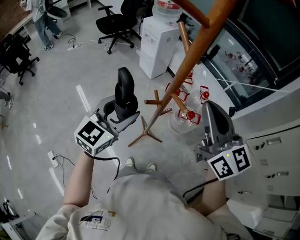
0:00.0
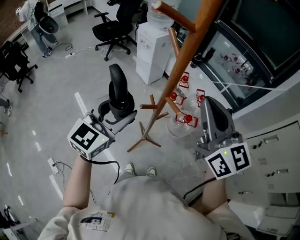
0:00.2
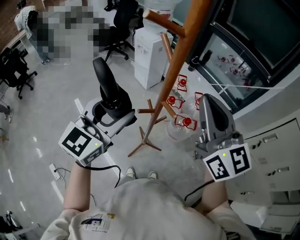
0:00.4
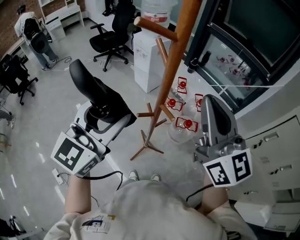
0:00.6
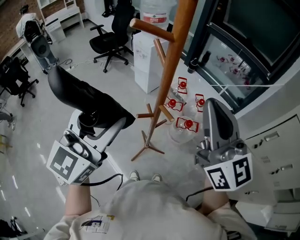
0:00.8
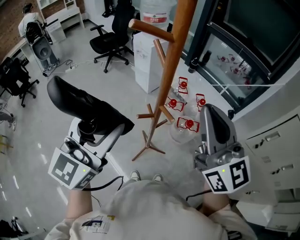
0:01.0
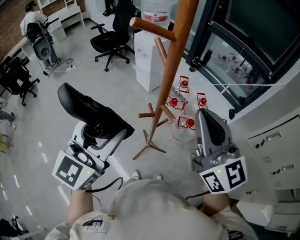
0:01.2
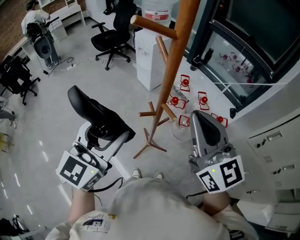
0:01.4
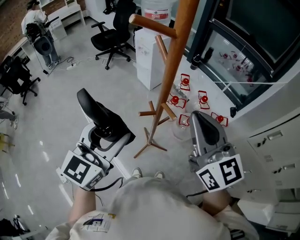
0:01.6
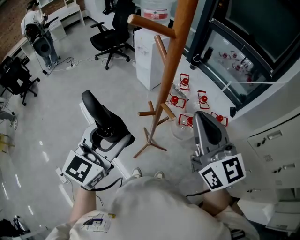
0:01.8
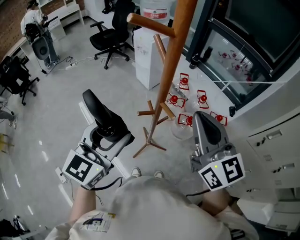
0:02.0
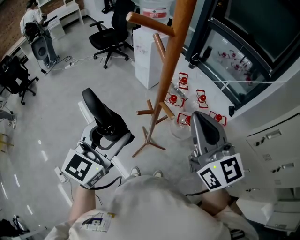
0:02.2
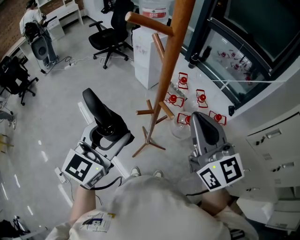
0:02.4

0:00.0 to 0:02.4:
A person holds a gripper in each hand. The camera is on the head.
0:00.0 to 0:01.2: The left gripper heads upward, covering roughly 15 cm.
0:01.2 to 0:02.4: The left gripper shifts approximately 5 cm downward.

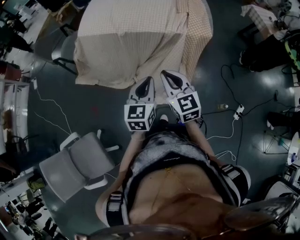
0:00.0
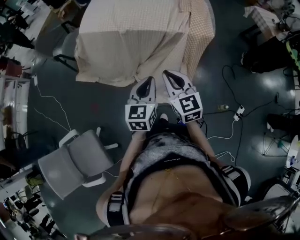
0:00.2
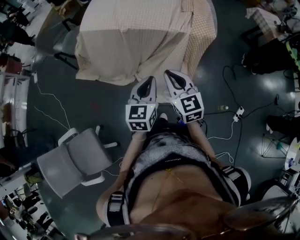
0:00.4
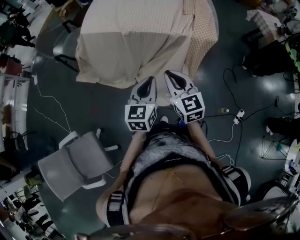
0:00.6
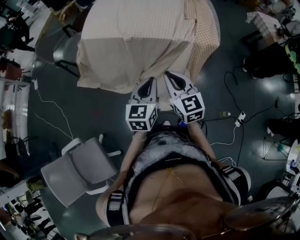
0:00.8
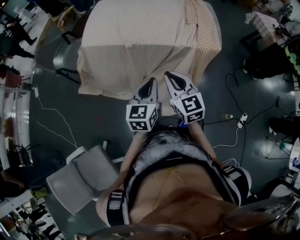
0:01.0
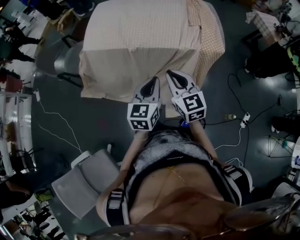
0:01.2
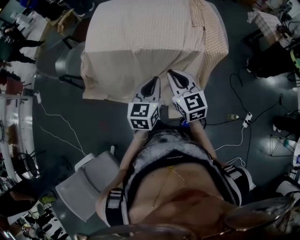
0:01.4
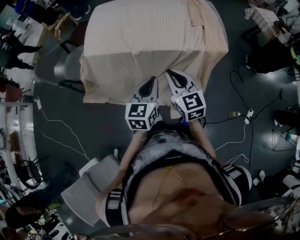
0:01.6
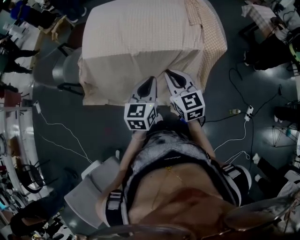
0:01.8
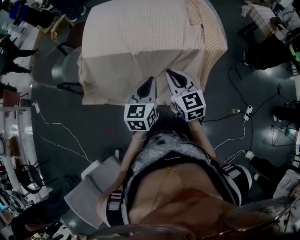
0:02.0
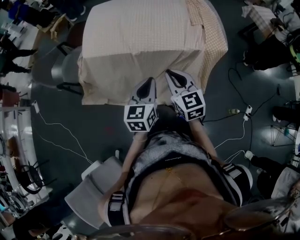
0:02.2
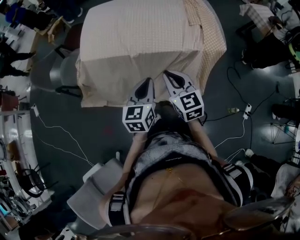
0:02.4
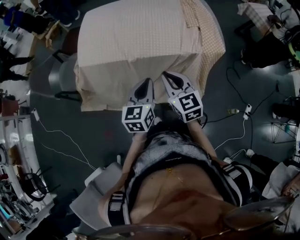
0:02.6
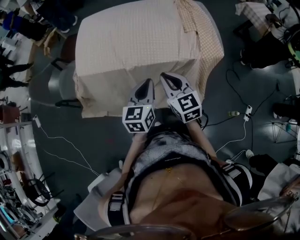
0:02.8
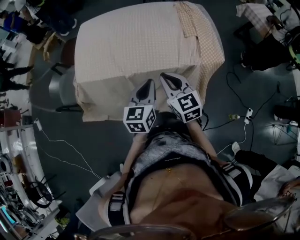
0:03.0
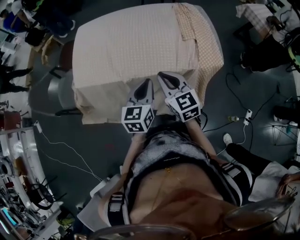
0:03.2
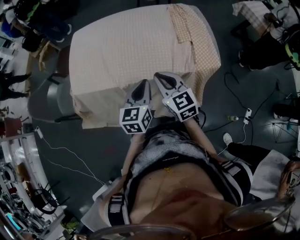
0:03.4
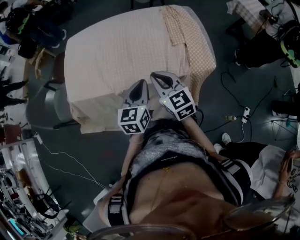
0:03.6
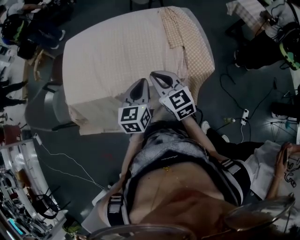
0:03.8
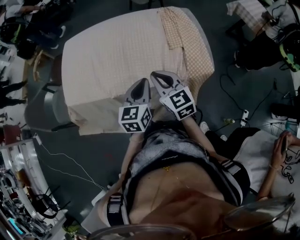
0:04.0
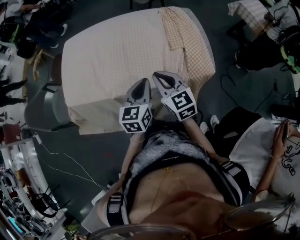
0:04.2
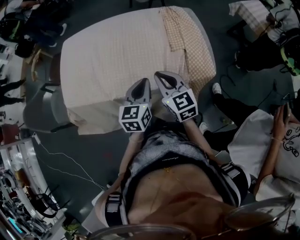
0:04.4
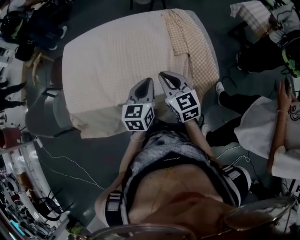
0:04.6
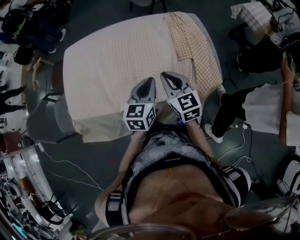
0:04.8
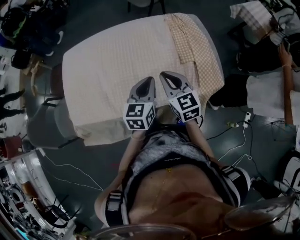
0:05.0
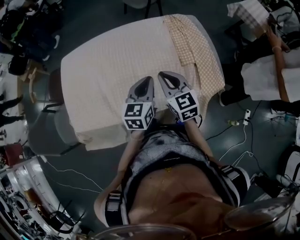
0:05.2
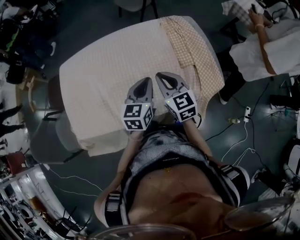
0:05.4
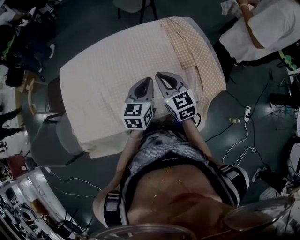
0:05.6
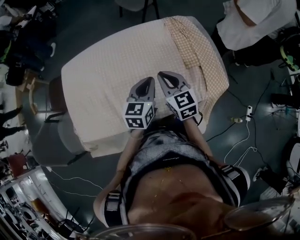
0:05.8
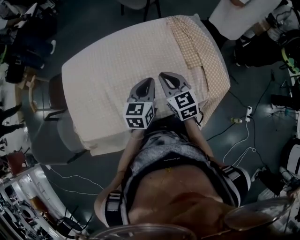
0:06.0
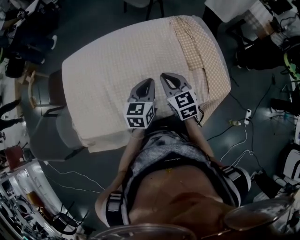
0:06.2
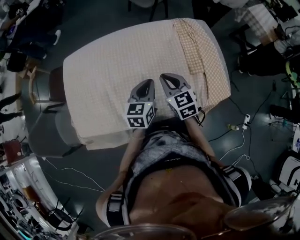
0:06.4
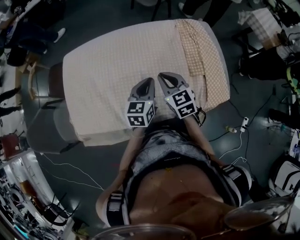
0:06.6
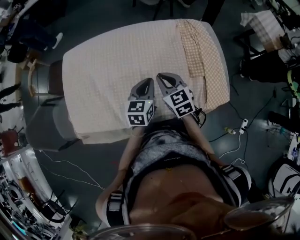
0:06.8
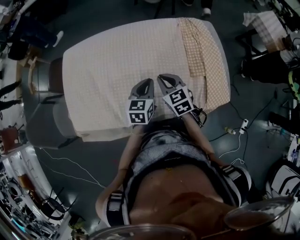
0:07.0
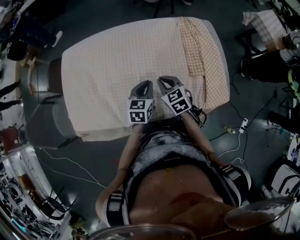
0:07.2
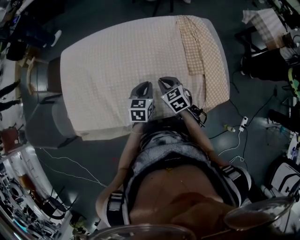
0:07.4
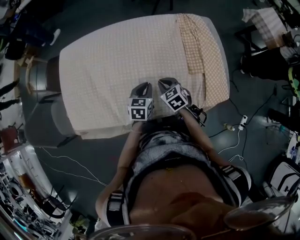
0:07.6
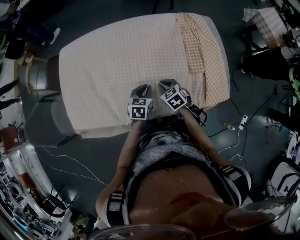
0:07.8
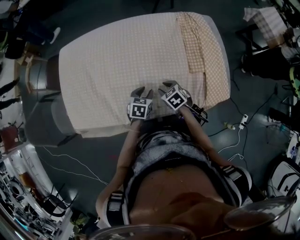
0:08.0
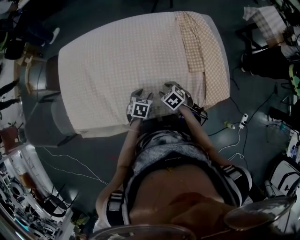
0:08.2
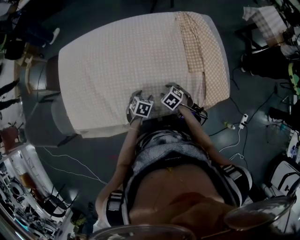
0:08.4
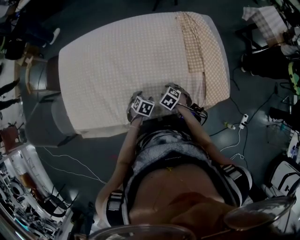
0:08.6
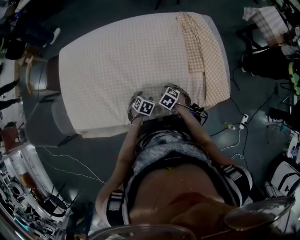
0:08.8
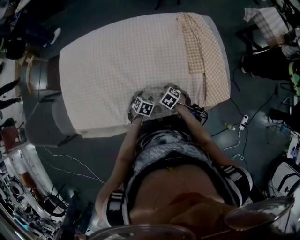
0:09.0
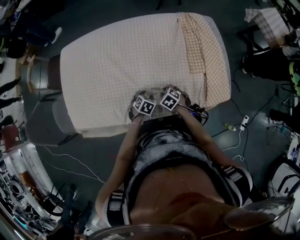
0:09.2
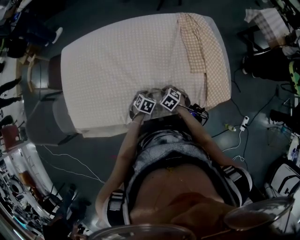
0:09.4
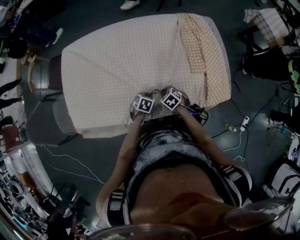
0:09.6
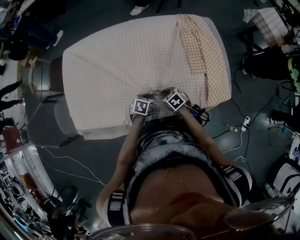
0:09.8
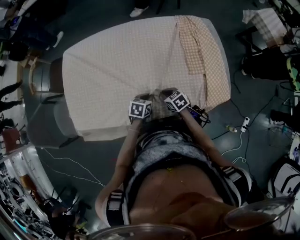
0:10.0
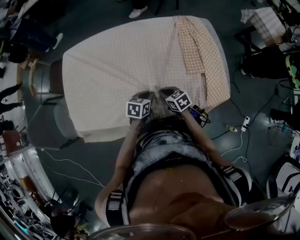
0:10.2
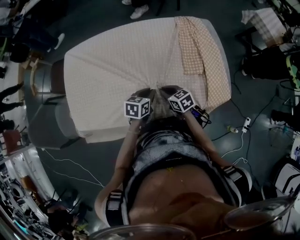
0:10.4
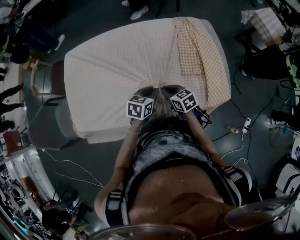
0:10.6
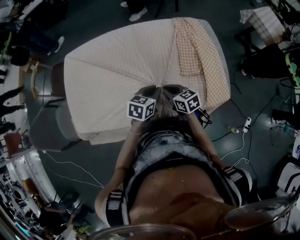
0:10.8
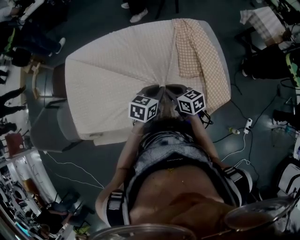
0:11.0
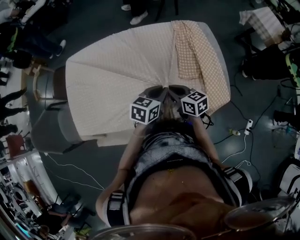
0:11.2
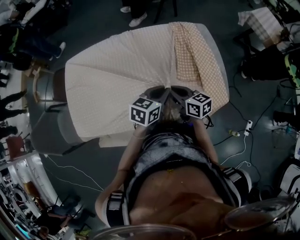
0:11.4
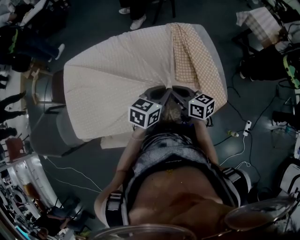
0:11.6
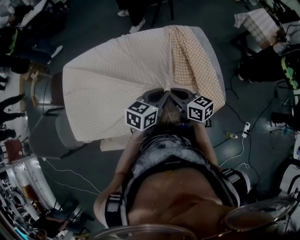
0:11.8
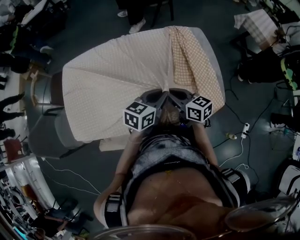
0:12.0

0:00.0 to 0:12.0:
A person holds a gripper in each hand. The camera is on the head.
0:00.0 to 0:01.6: The two grippers go approximately 20 cm forward and to the left.
0:01.6 to 0:03.0: Both grippers move forward, approximately 15 cm.
0:03.0 to 0:04.4: Both grippers travel together forward and to the right, about 15 cm.
0:04.4 to 0:06.0: Both grippers travel together forward and to the left, approximately 20 cm.
0:06.0 to 0:07.6: The grippers both shift downward by some 15 cm. The right gripper turns by about 30 degrees.
0:07.6 to 0:09.0: Both grippers travel together downward, about 15 cm. The left gripper turns by some 30 degrees, and opens up. Meanwhile the right gripper rotates about 30 degrees, and opens.
0:09.0 to 0:10.4: Both grippers travel together upward, about 15 cm. The right gripper points its fingers about 30 degrees further upward, and closes up. The left gripper changes its angle by roughly 30 degrees, and closes.
0:10.4 to 0:12.0: The right gripper shifts about 15 cm upward, and turns by roughly 20 degrees; the left gripper heads upward and to the right, covering about 15 cm, and rotates about 20 degrees.

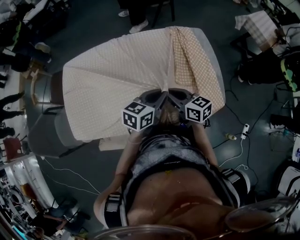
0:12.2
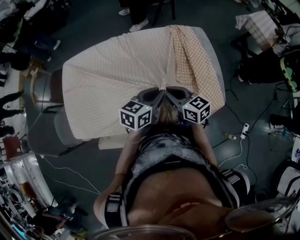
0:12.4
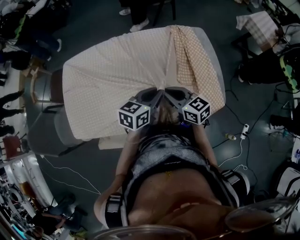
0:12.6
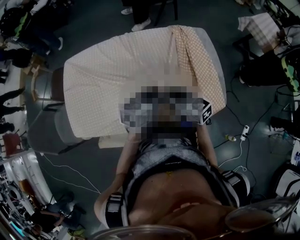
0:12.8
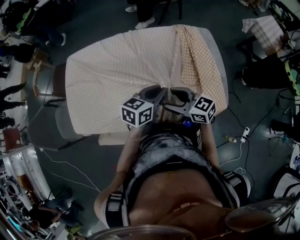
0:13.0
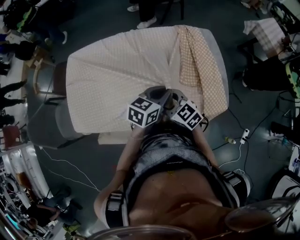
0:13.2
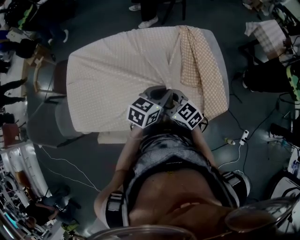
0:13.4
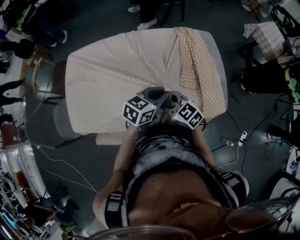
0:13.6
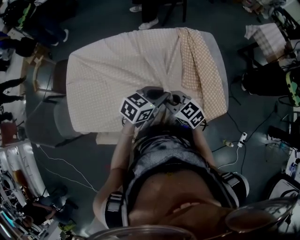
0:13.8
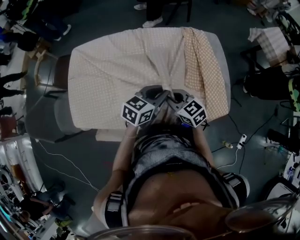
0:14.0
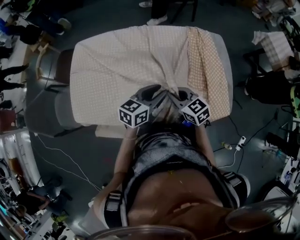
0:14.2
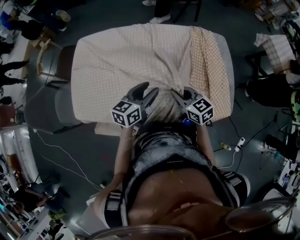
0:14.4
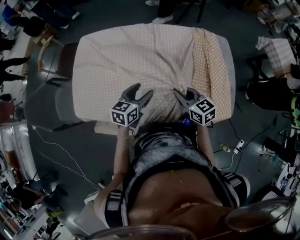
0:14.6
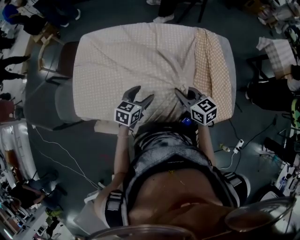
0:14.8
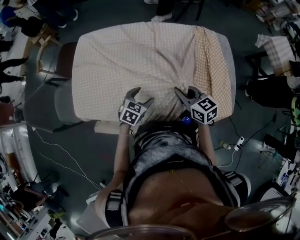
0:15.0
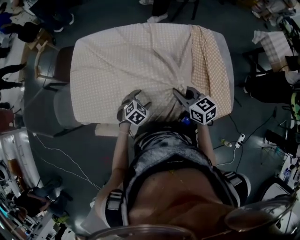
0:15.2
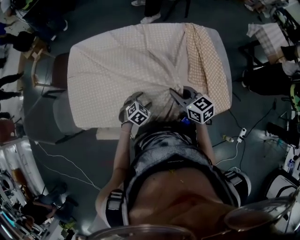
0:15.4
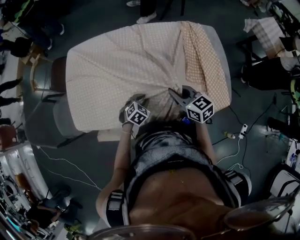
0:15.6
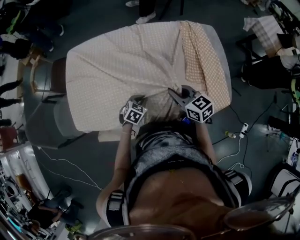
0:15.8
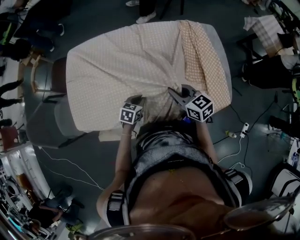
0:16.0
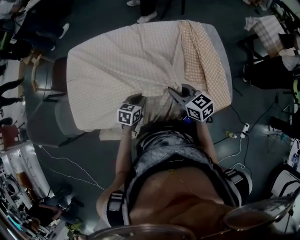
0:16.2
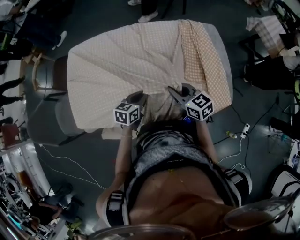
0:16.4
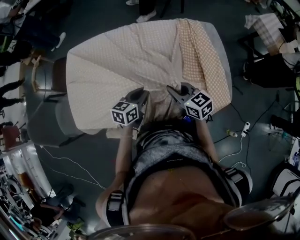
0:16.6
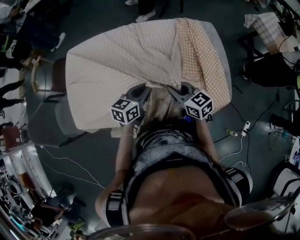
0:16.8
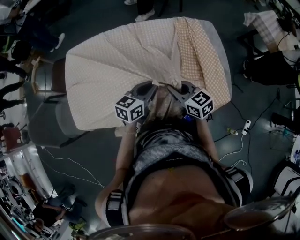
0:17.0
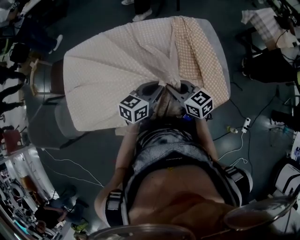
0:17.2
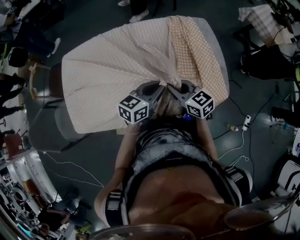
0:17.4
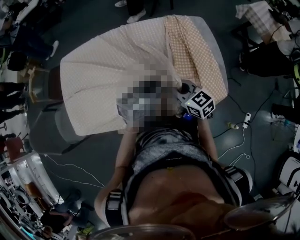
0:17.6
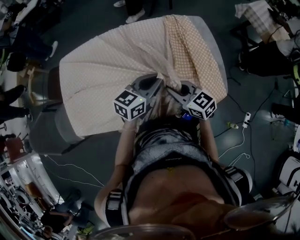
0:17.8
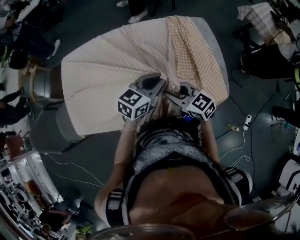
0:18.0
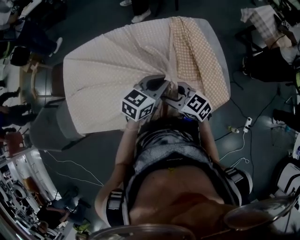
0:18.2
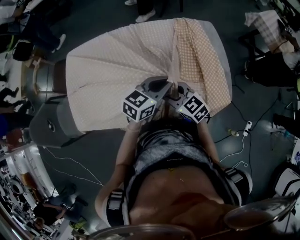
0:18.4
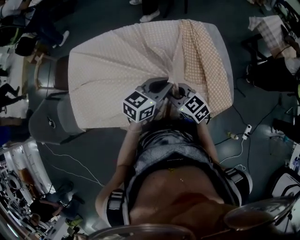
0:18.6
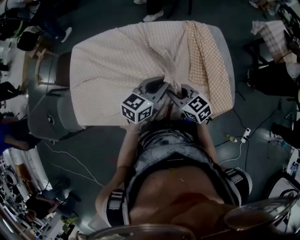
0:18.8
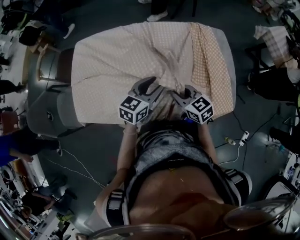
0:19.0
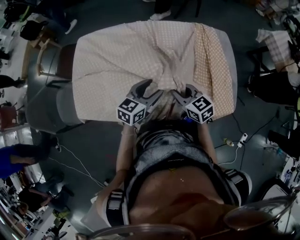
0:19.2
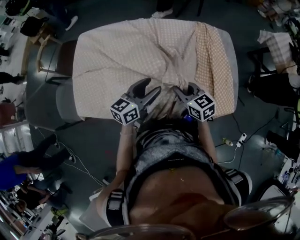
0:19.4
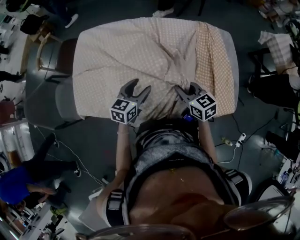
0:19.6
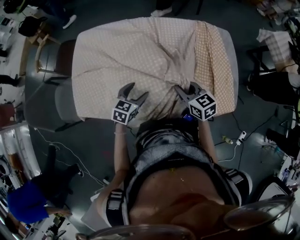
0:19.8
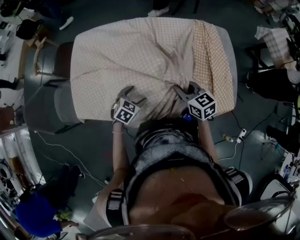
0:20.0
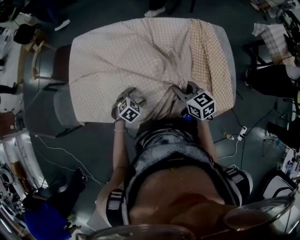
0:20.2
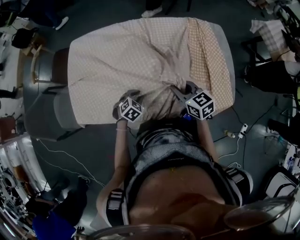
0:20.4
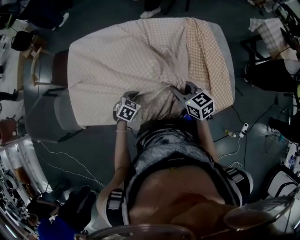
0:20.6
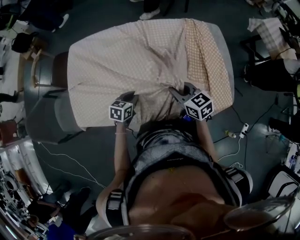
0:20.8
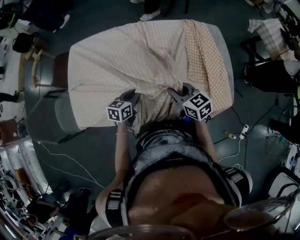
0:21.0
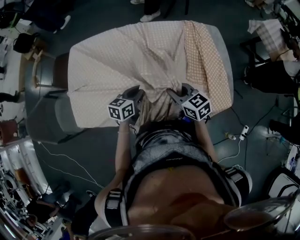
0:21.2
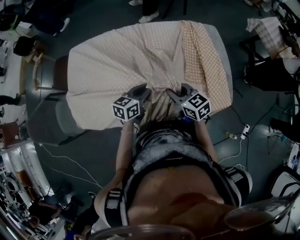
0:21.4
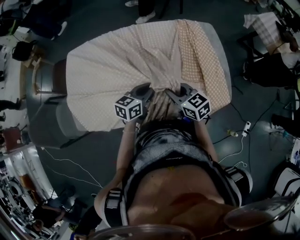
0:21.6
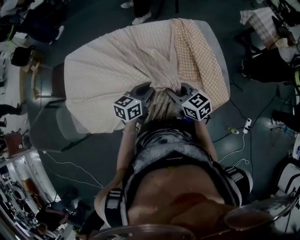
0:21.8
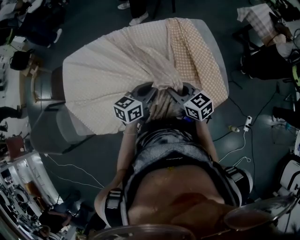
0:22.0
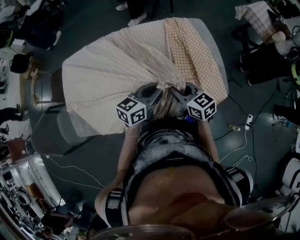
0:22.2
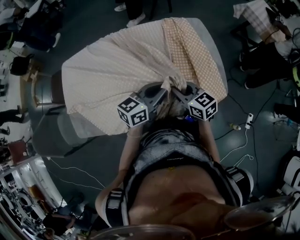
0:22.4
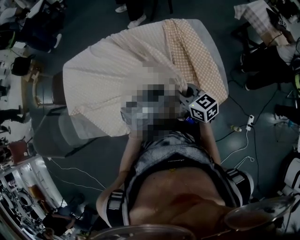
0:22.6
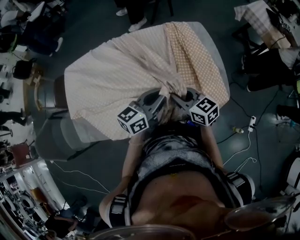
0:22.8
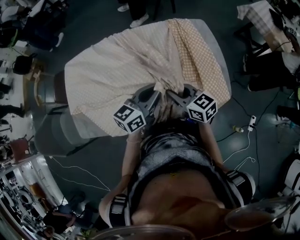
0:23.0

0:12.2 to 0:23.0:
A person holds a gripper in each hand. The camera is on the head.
0:12.2 to 0:13.8: The right gripper moves about 5 cm, changes its angle by approximately 30 degrees, and opens, then closes once more.
0:13.8 to 0:15.2: The left gripper travels downward and to the left by some 25 cm, tips its fingers downward by about 30 degrees, and opens.
0:15.2 to 0:16.8: The left gripper heads upward, covering approximately 15 cm, angles its fingers upward, by roughly 40 degrees, and closes up.
0:16.8 to 0:18.4: The left gripper moves to the right and upward, about 15 cm, while the right gripper opens.
0:18.4 to 0:20.0: The right gripper closes its fingers, while the left gripper heads to the left and downward, covering some 30 cm, tips its fingers downward by about 30 degrees, and opens up.
0:20.0 to 0:21.4: The left gripper is displaced upward, to the right and forward by some 15 cm, rotates about 40 degrees, and closes up.
0:21.4 to 0:23.0: The left gripper heads upward and to the right, covering about 15 cm; the right gripper shifts some 5 cm to the right.
